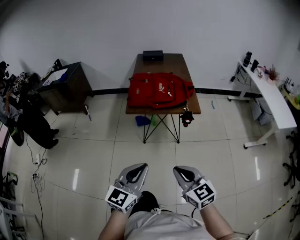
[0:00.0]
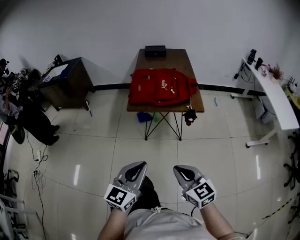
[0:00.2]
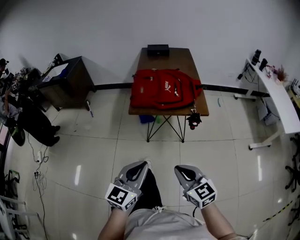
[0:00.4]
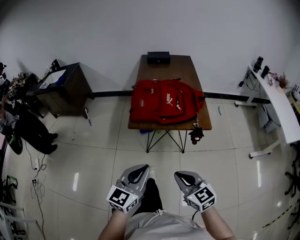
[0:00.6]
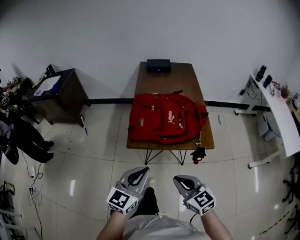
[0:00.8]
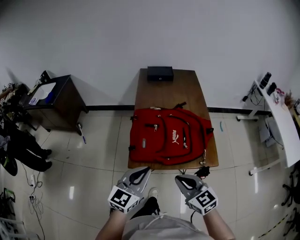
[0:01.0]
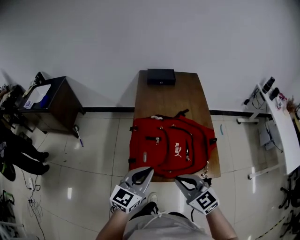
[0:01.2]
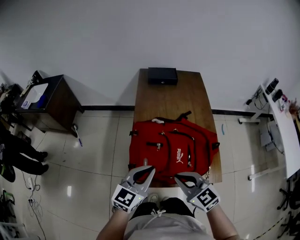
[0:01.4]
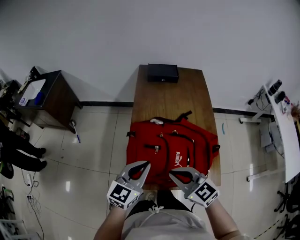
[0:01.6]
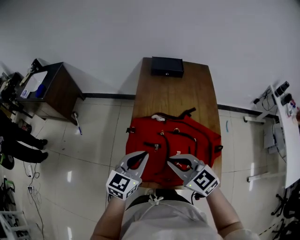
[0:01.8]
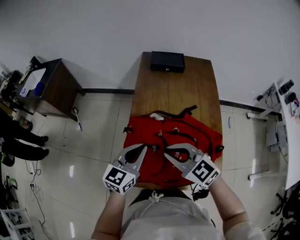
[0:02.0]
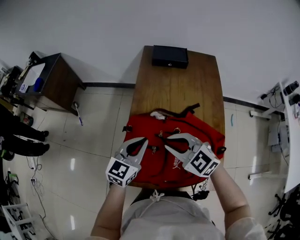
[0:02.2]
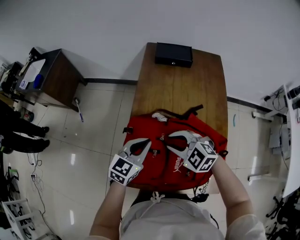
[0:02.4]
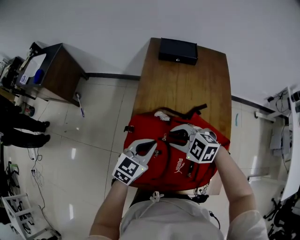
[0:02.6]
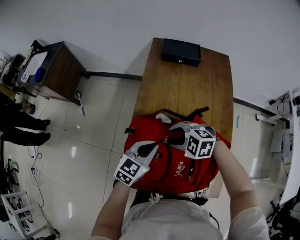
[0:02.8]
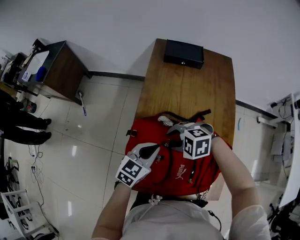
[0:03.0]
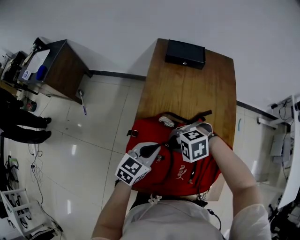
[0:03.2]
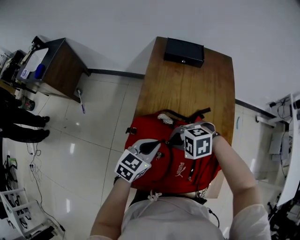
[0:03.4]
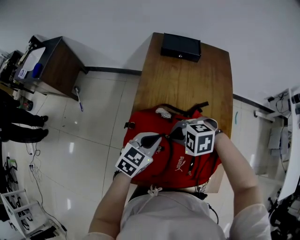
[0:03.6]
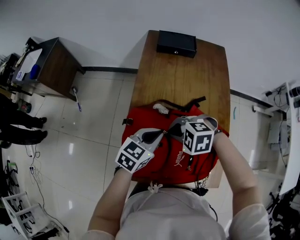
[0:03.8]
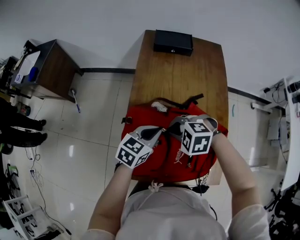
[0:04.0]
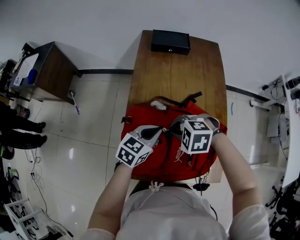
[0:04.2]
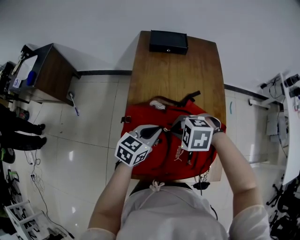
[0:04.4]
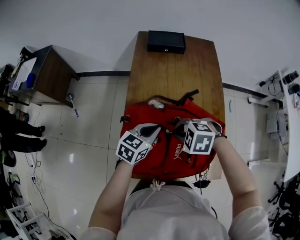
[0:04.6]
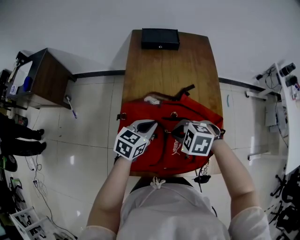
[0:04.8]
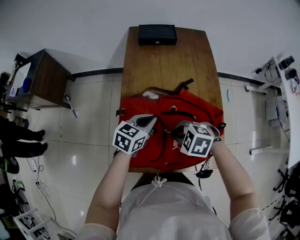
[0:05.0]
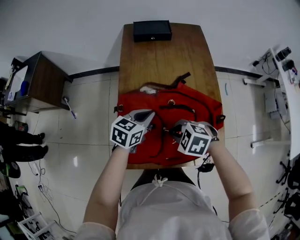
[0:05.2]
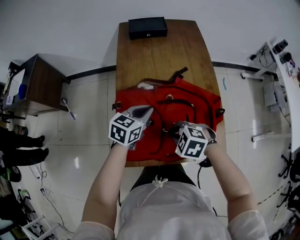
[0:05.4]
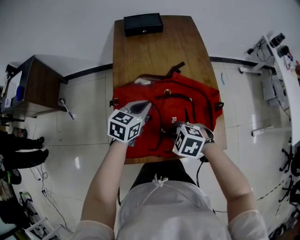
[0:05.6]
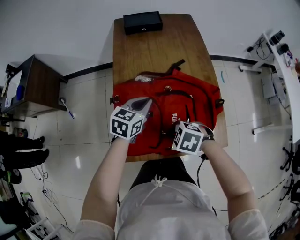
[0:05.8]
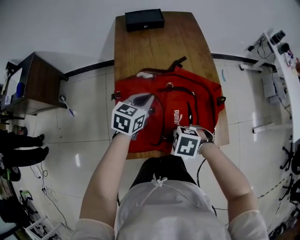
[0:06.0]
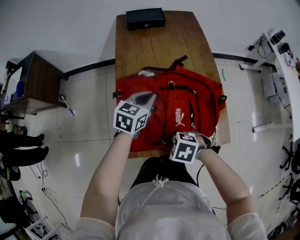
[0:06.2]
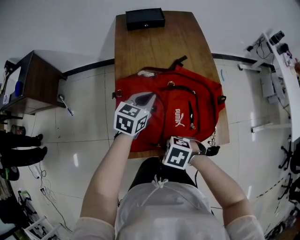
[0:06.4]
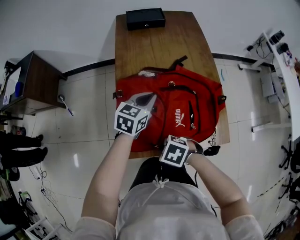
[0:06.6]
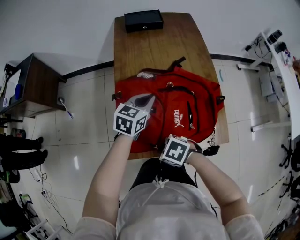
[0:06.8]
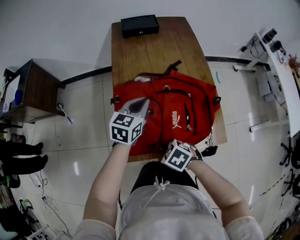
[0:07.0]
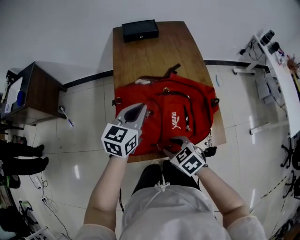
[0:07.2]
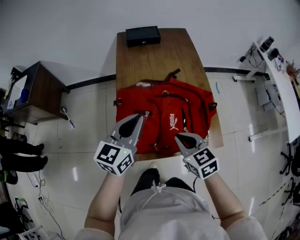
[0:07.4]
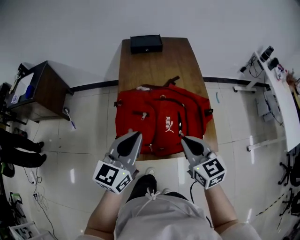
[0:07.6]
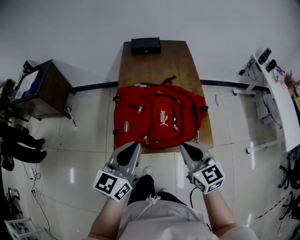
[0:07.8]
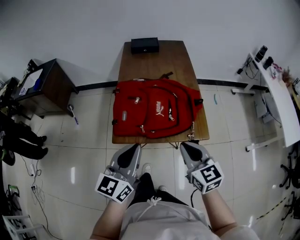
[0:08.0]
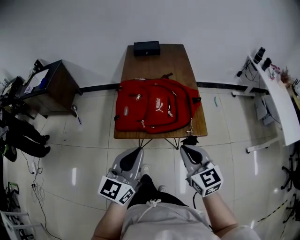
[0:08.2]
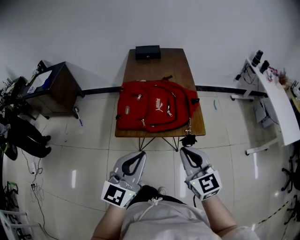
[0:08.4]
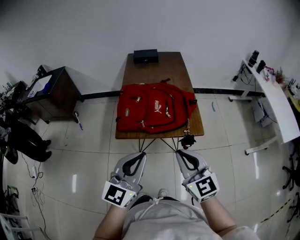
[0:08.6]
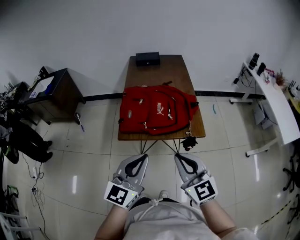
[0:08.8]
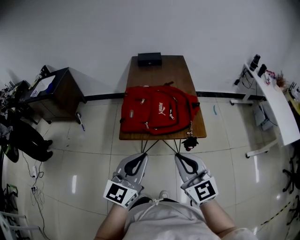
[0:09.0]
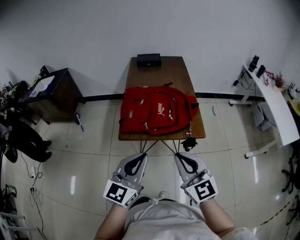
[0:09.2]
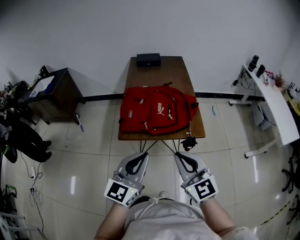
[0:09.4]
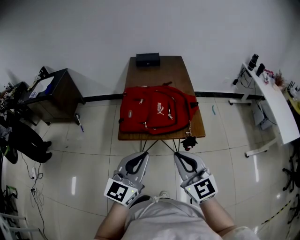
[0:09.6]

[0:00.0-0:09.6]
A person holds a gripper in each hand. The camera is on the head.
0:00.0 to 0:01.6: The two grippers travel together, forward, some 60 cm.
0:01.6 to 0:03.2: The left gripper changes place by approximately 20 cm. The right gripper changes place by approximately 20 cm, tips its fingers downward by some 40 degrees, and opens and closes again.
0:03.2 to 0:04.8: The right gripper changes place by some 10 cm, and rotates some 40 degrees.
0:04.8 to 0:06.4: The right gripper ends up about 20 cm from where it was, and changes its angle by roughly 20 degrees.
0:06.4 to 0:08.0: The right gripper moves upward, some 20 cm, angles its fingers upward, by approximately 50 degrees, and opens, then closes once more. The left gripper shifts by roughly 35 cm, and changes its angle by some 30 degrees.
0:08.0 to 0:09.6: The right gripper moves backward and upward, about 15 cm, and changes its angle by some 20 degrees; the left gripper heads backward, covering about 10 cm.

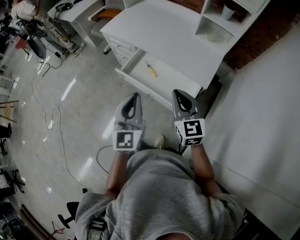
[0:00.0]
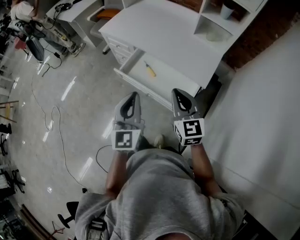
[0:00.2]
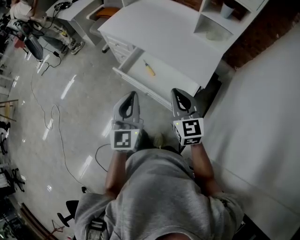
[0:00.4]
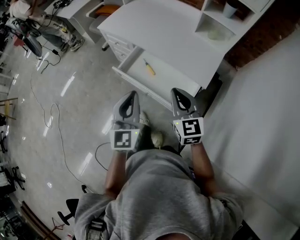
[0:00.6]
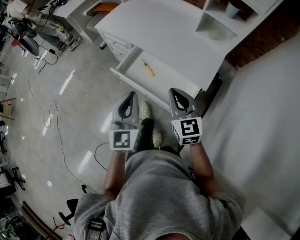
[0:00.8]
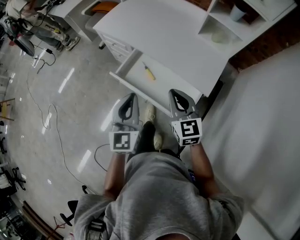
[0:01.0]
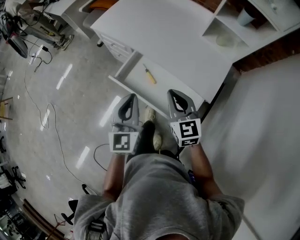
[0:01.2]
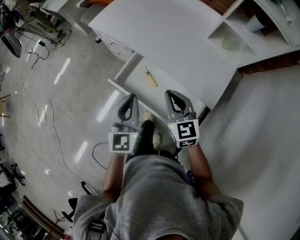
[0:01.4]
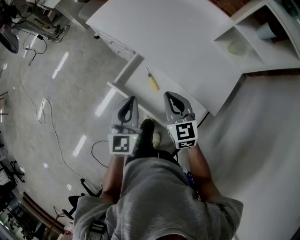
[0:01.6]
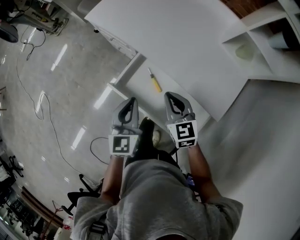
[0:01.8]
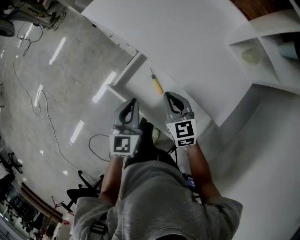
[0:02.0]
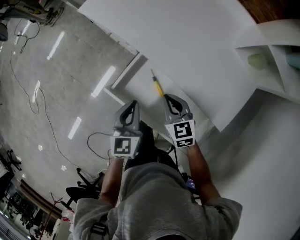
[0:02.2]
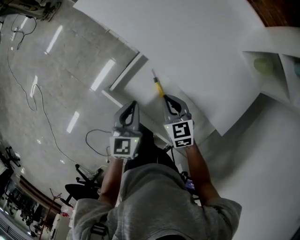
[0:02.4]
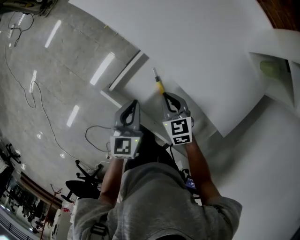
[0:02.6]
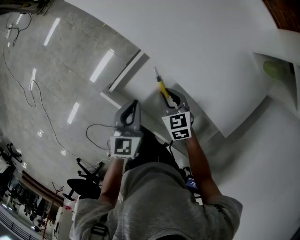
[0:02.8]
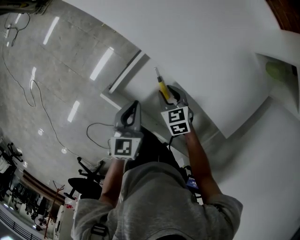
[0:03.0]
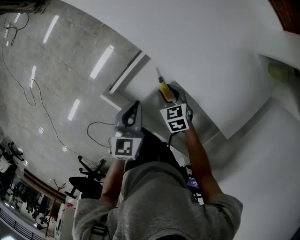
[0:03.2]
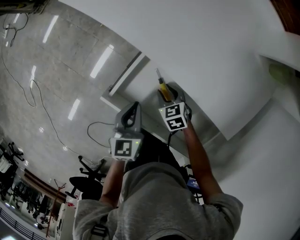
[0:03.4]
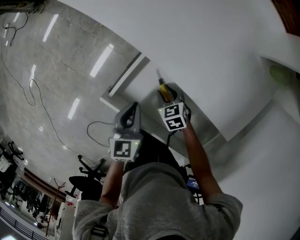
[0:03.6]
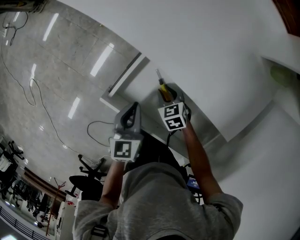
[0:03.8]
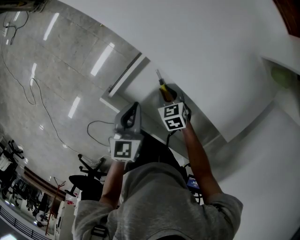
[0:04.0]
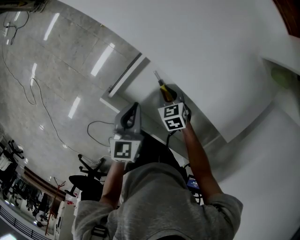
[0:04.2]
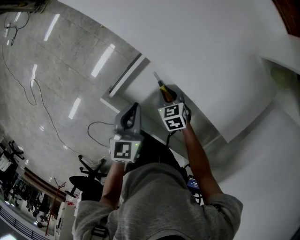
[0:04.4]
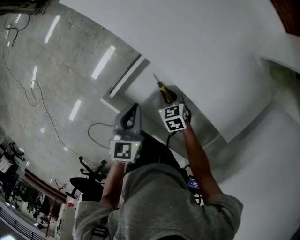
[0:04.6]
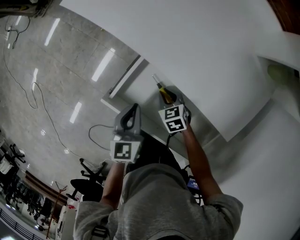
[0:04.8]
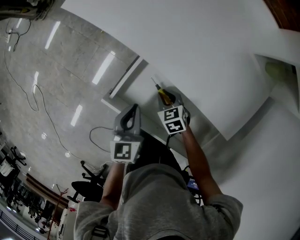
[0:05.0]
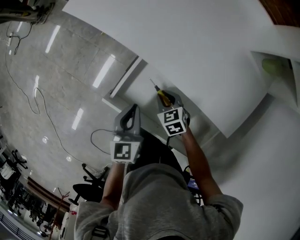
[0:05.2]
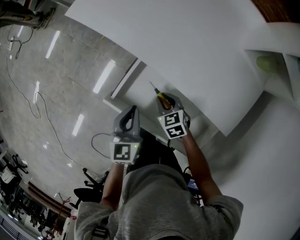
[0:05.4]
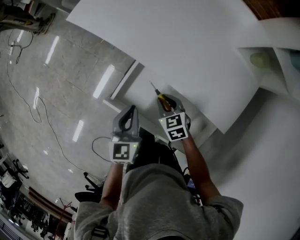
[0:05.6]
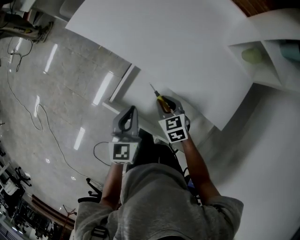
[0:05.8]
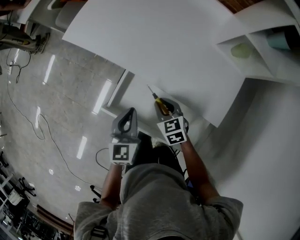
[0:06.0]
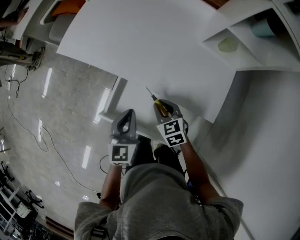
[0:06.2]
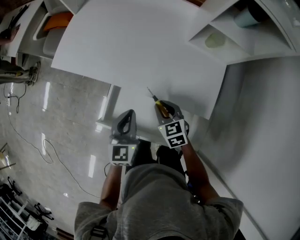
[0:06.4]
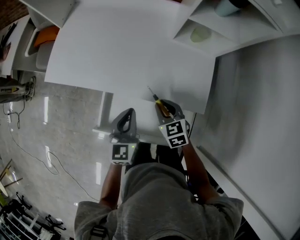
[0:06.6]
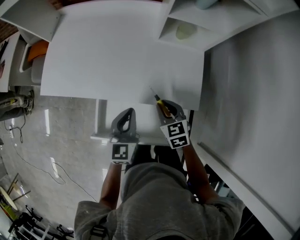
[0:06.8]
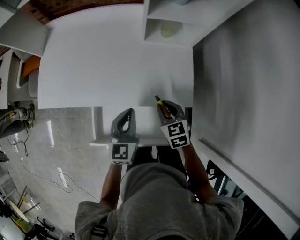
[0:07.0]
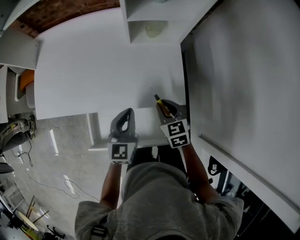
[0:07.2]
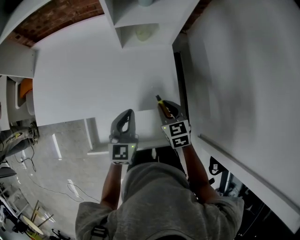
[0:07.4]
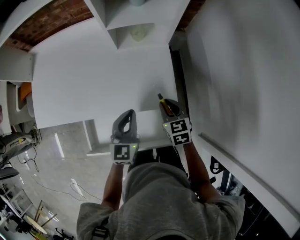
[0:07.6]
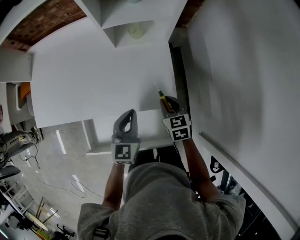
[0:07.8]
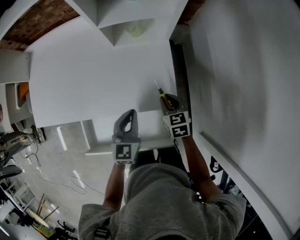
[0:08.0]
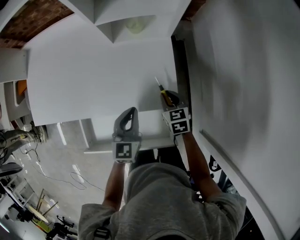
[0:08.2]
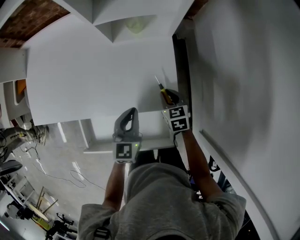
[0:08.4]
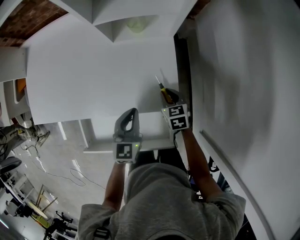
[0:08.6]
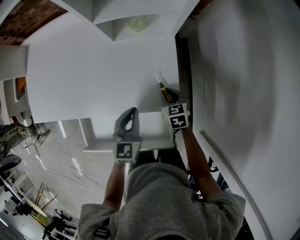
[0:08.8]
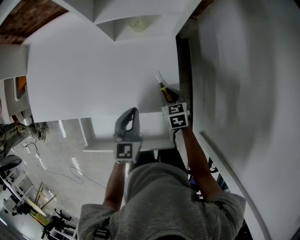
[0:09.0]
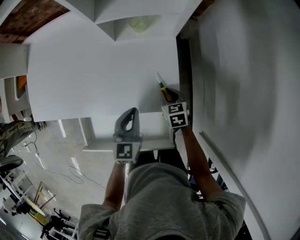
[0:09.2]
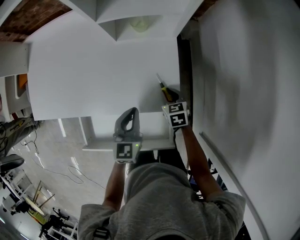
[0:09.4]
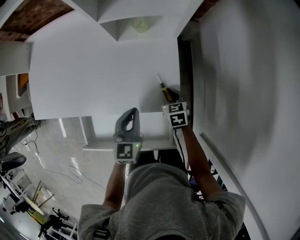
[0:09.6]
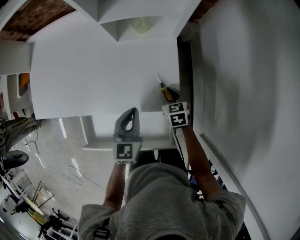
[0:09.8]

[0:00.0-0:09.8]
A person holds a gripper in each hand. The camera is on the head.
0:00.0 to 0:01.4: The grippers both shift forward and downward by roughly 25 cm.
0:01.4 to 0:02.8: The two grippers go roughly 30 cm downward and forward. The right gripper rotates roughly 30 degrees, while the left gripper turns by some 20 degrees.
0:02.8 to 0:04.2: The right gripper moves downward, about 10 cm.
0:04.2 to 0:05.6: The two grippers go approximately 10 cm upward.
0:05.6 to 0:07.0: The right gripper shifts by roughly 30 cm, and swivels approximately 40 degrees, while the left gripper ends up approximately 25 cm from where it was, and rotates roughly 40 degrees.
0:07.0 to 0:08.4: The right gripper heads to the right, downward and forward, covering about 20 cm. The left gripper travels to the right and forward by roughly 15 cm.
0:08.4 to 0:09.8: There are only small adjustments of the grippers.

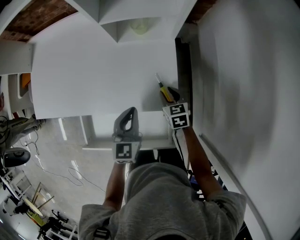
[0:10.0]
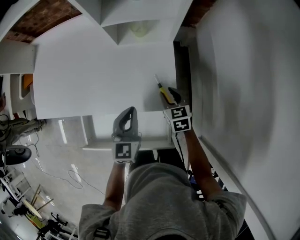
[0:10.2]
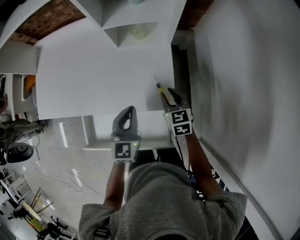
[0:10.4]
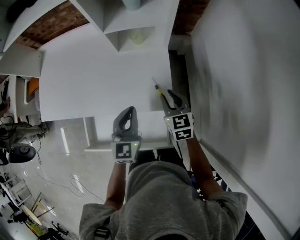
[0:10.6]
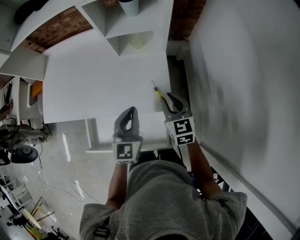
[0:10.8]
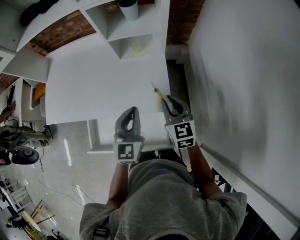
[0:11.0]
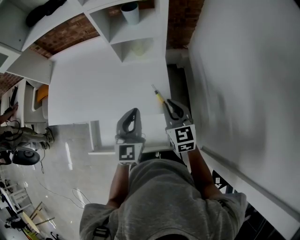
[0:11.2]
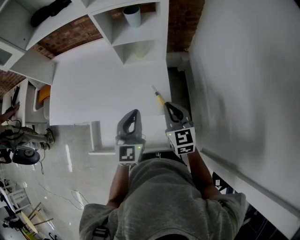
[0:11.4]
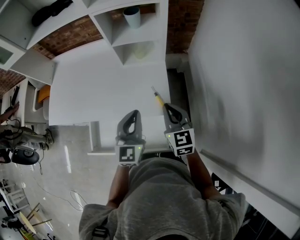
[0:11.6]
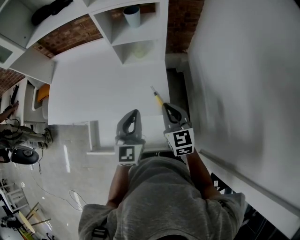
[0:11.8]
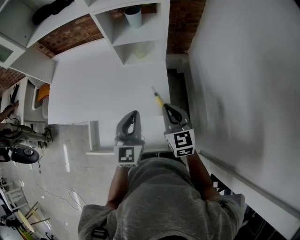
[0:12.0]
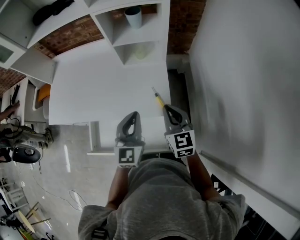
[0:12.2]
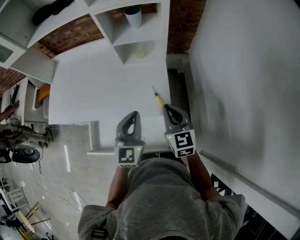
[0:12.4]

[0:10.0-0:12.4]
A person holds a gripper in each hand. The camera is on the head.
0:10.0 to 0:11.2: The left gripper is displaced upward and backward by approximately 15 cm; the right gripper goes some 25 cm upward, turns by roughly 30 degrees, and closes its fingers.
0:11.2 to 0:12.4: The grippers move only a little.

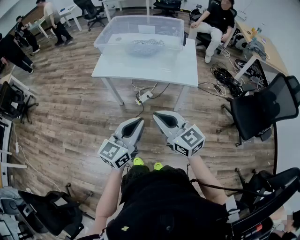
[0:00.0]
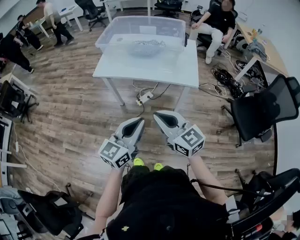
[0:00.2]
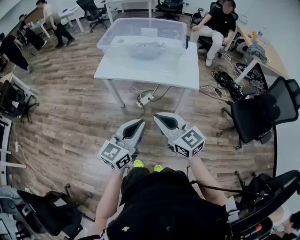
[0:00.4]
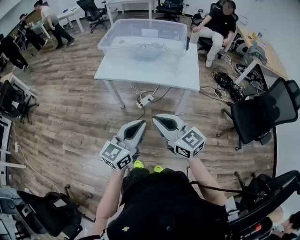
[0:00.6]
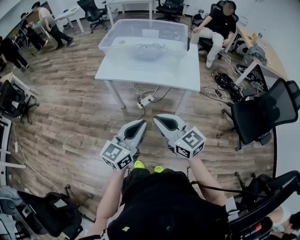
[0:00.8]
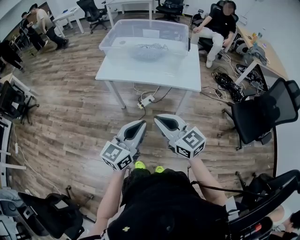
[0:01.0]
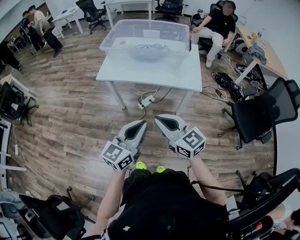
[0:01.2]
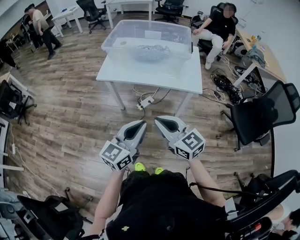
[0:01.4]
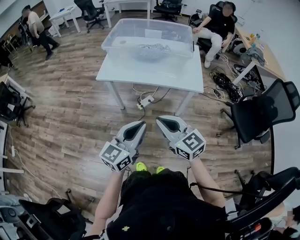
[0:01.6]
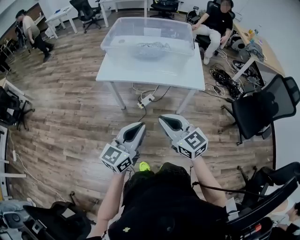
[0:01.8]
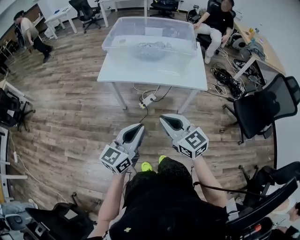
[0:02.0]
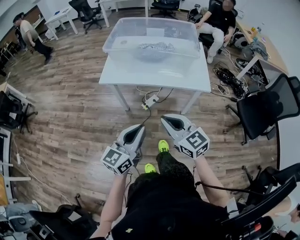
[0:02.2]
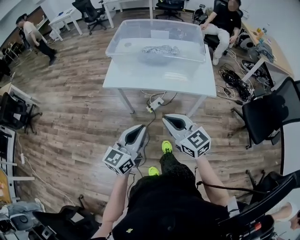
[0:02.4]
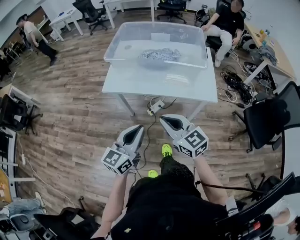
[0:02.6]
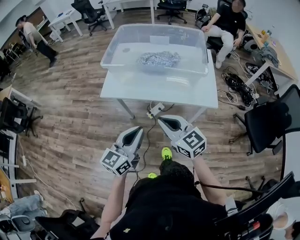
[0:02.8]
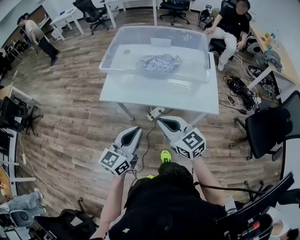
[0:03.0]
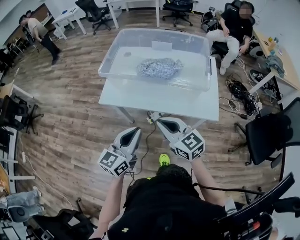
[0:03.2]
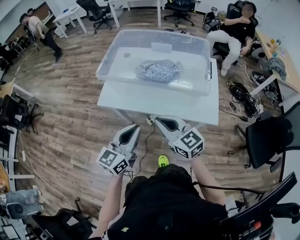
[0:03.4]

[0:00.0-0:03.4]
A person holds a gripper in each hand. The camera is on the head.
0:00.0 to 0:01.6: The two grippers go about 10 cm to the left.
0:01.6 to 0:03.4: Both grippers travel together forward, roughly 30 cm.
